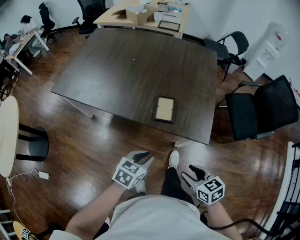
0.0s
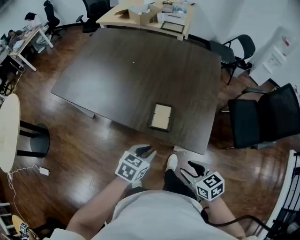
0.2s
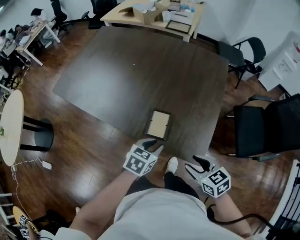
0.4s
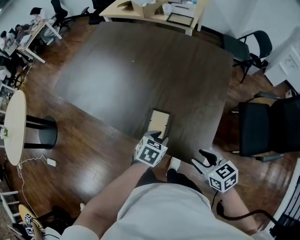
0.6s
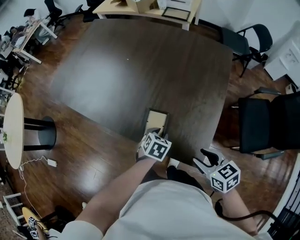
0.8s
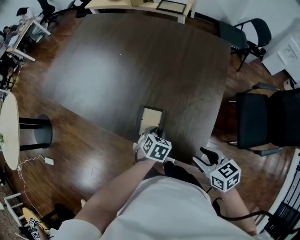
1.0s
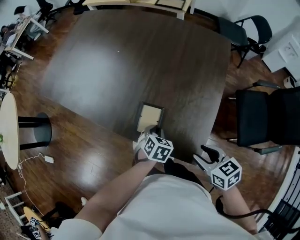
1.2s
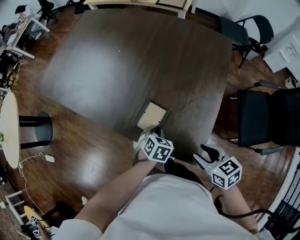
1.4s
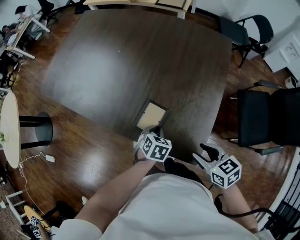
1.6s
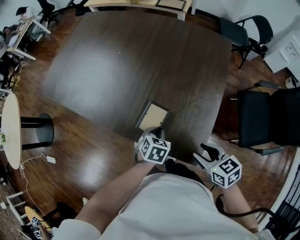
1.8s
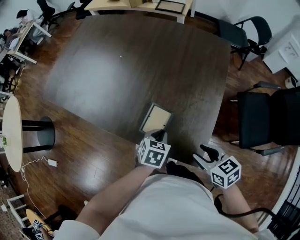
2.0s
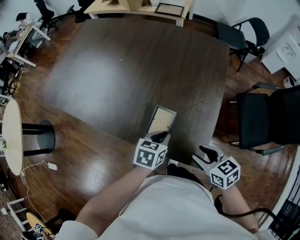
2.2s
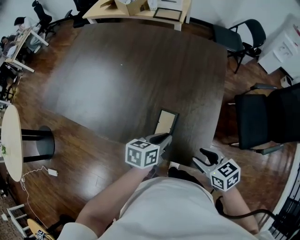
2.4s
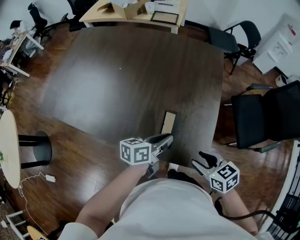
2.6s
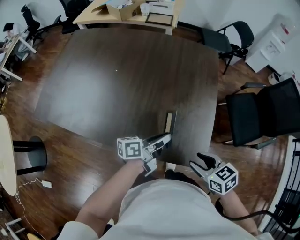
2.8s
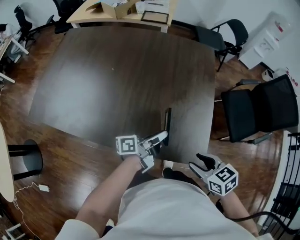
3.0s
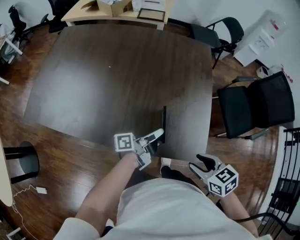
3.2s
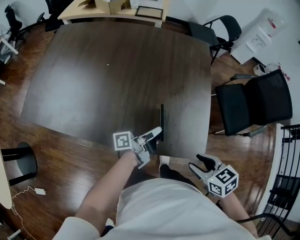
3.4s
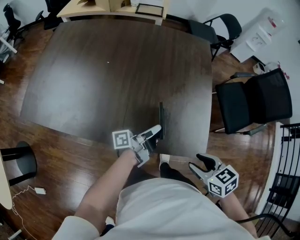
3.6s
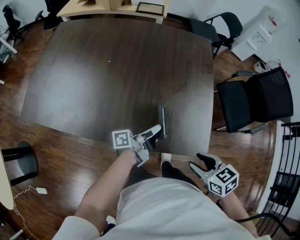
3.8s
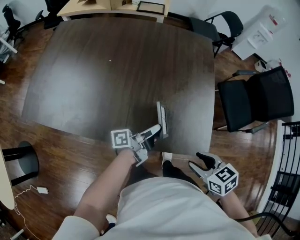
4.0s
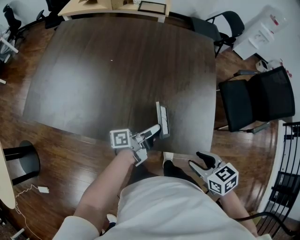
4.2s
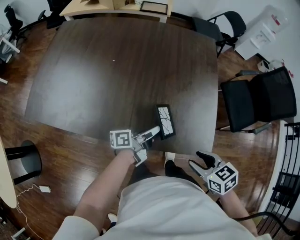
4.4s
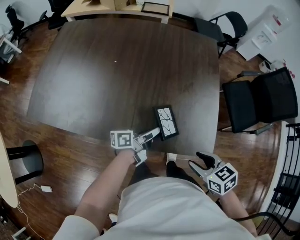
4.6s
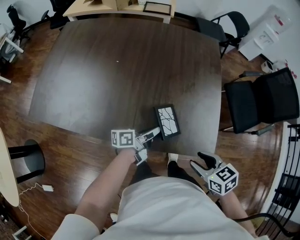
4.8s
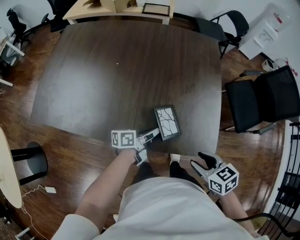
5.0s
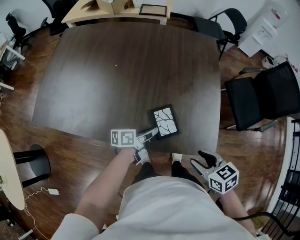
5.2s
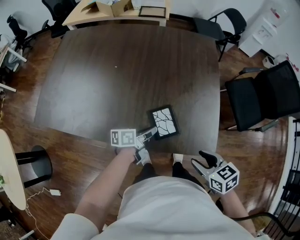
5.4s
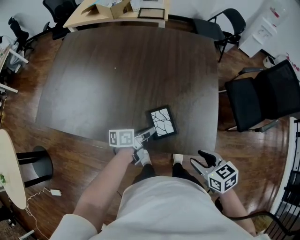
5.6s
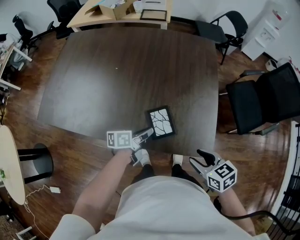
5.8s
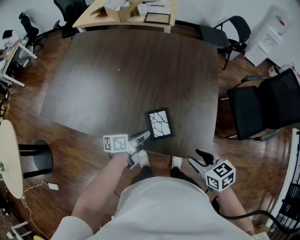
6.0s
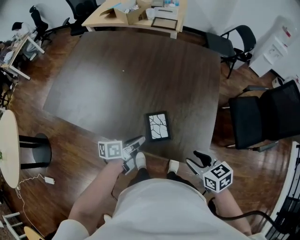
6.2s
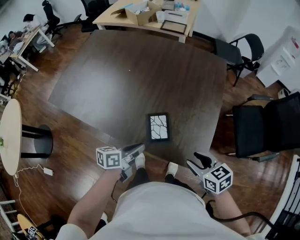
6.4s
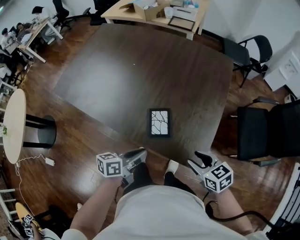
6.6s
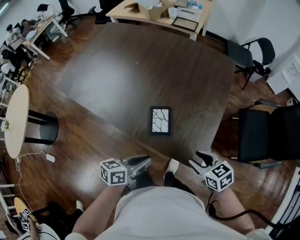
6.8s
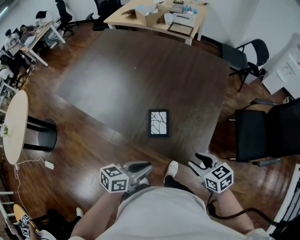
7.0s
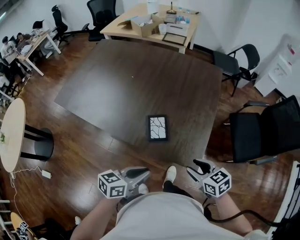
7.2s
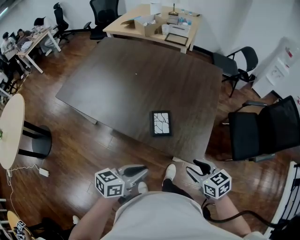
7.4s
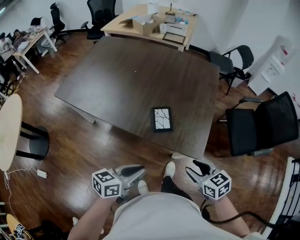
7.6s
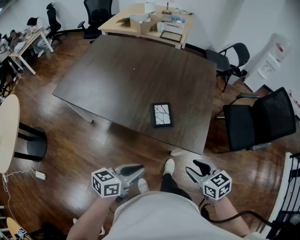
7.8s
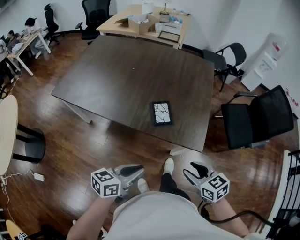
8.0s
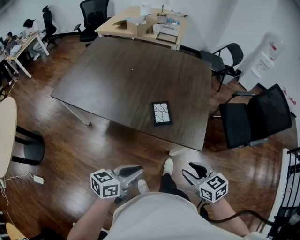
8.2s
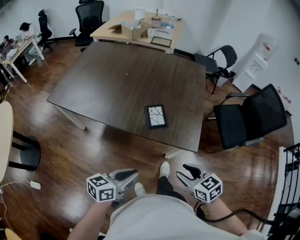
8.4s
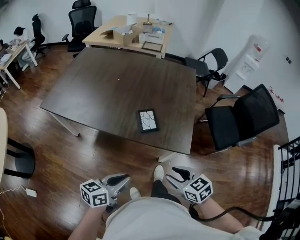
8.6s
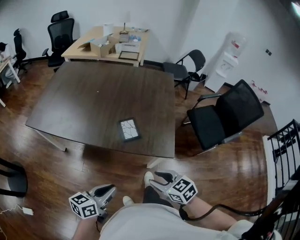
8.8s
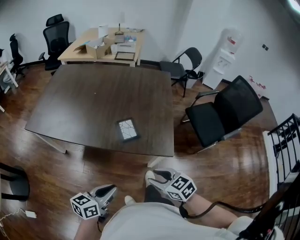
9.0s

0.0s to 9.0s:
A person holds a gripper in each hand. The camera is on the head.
0.0s to 1.6s: The left gripper ends up about 25 cm from where it was, and changes its angle by approximately 30 degrees, while the right gripper ends up about 20 cm from where it was.
1.6s to 3.0s: The right gripper changes place by some 5 cm. Meanwhile the left gripper is displaced upward by about 10 cm, and tilts its fingers roughly 70 degrees upward.
3.0s to 4.4s: The left gripper heads to the left, covering some 5 cm.
4.4s to 6.0s: The left gripper rotates about 30 degrees.
6.0s to 7.6s: The right gripper shifts approximately 10 cm backward. The left gripper goes about 25 cm backward and upward, and rotates roughly 20 degrees.
7.6s to 9.0s: The left gripper shifts by some 5 cm. The right gripper goes roughly 10 cm to the left and backward.

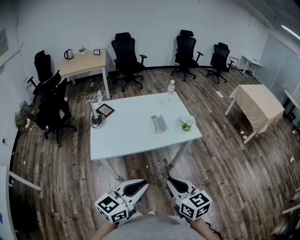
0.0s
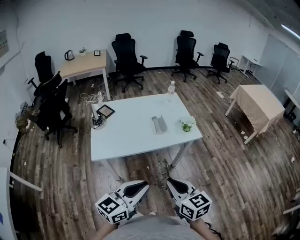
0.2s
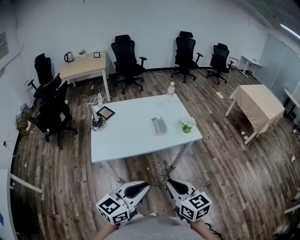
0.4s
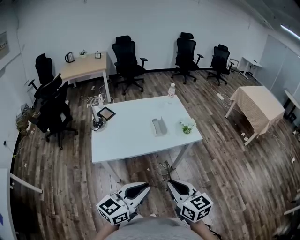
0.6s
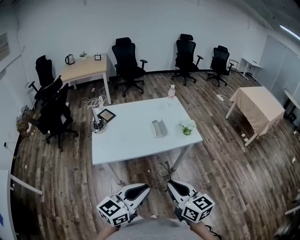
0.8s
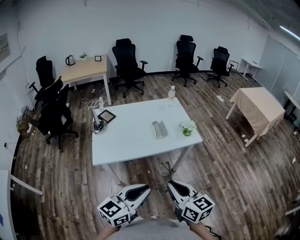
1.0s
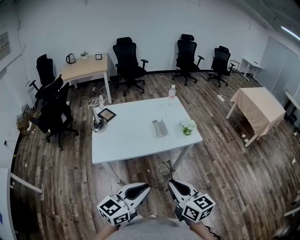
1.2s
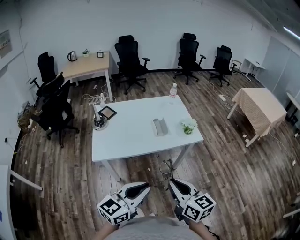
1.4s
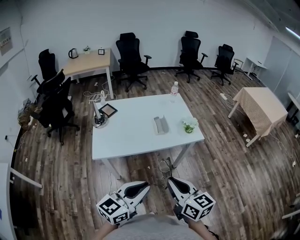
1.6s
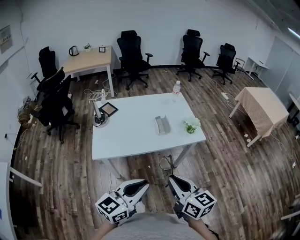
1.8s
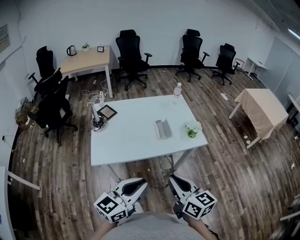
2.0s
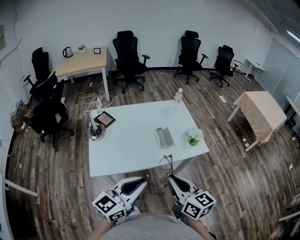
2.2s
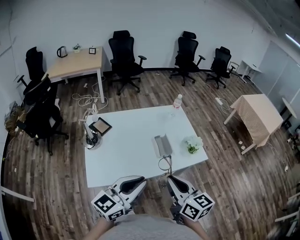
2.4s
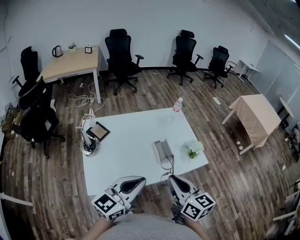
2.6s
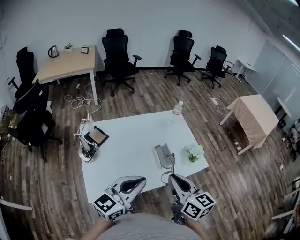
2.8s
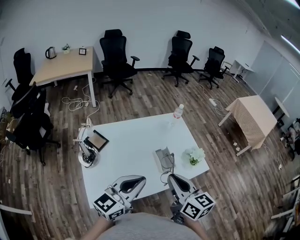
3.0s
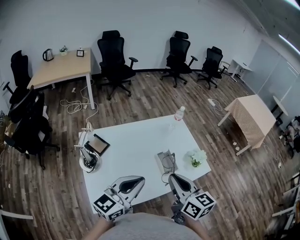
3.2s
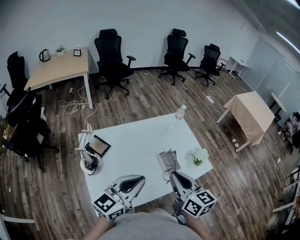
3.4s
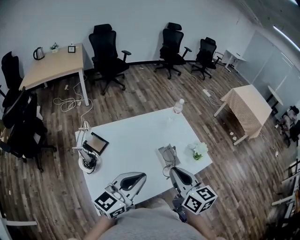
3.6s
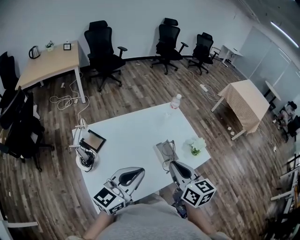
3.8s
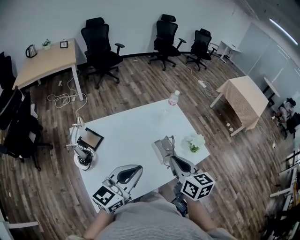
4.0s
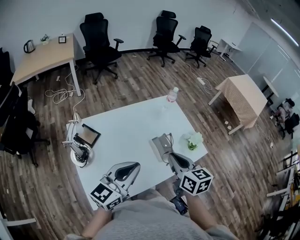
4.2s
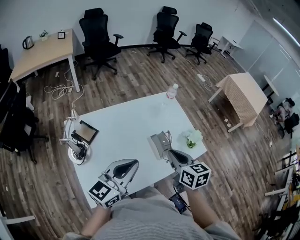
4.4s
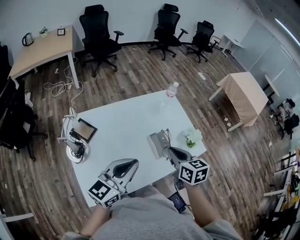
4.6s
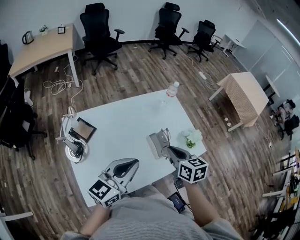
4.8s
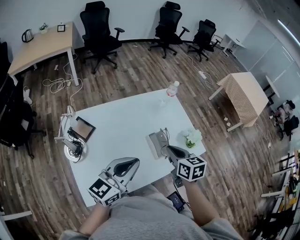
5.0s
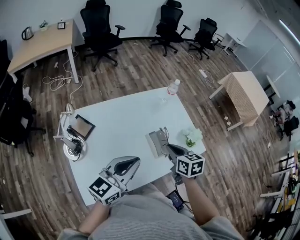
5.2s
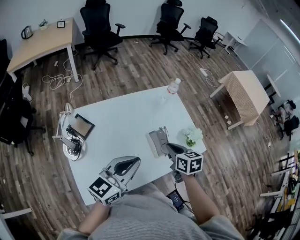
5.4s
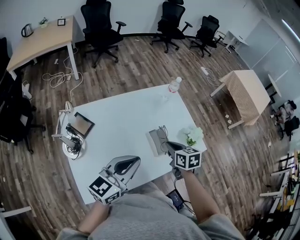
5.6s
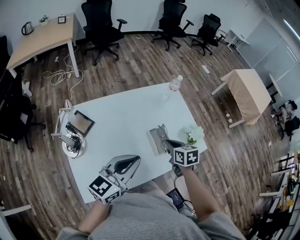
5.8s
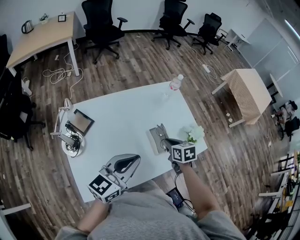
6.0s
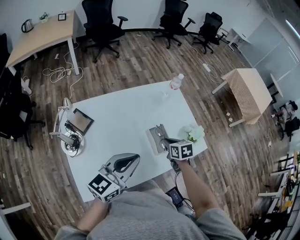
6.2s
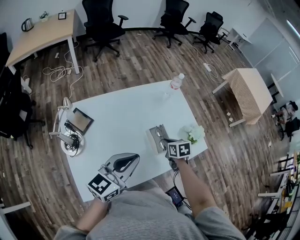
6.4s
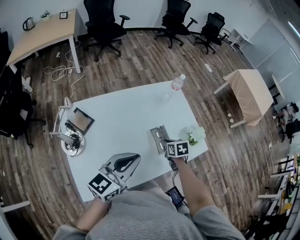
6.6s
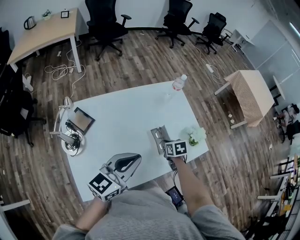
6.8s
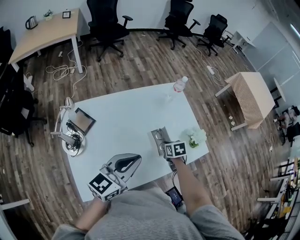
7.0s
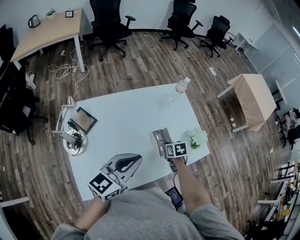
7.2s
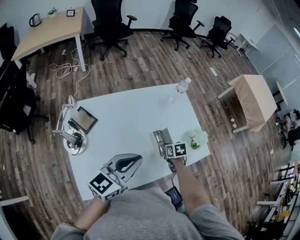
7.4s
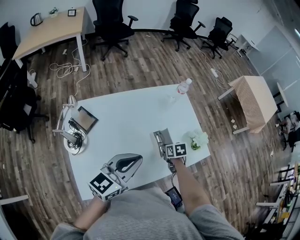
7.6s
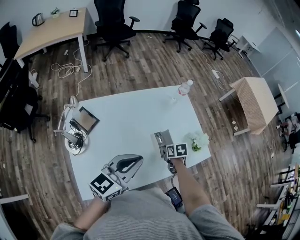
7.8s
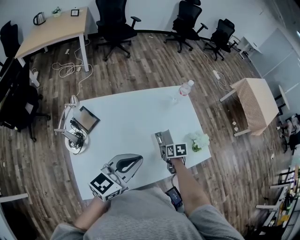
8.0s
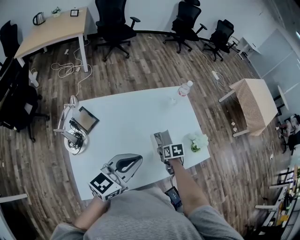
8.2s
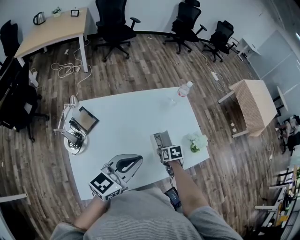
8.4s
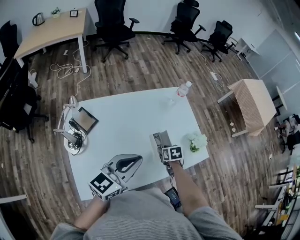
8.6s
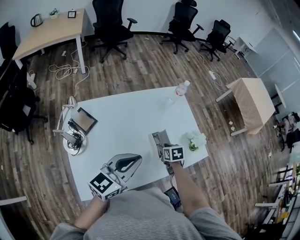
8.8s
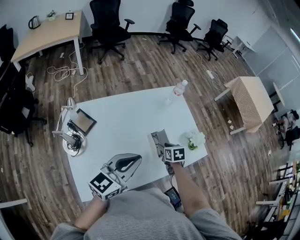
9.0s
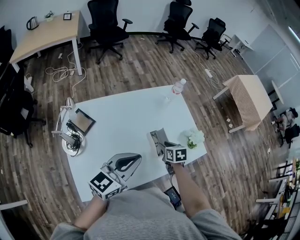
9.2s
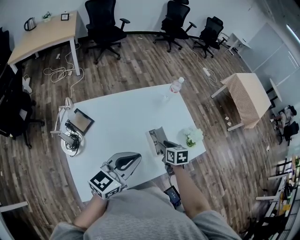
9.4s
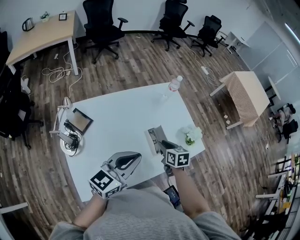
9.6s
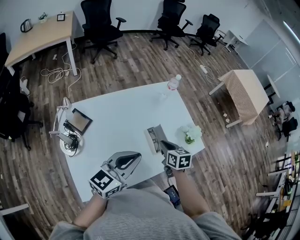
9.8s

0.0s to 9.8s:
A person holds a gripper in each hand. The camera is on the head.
0.0s to 1.4s: The grippers make only small movements.
1.4s to 2.8s: The two grippers go approximately 30 cm forward and to the left.
2.8s to 4.2s: The left gripper goes about 10 cm forward and to the left. Meanwhile the right gripper is displaced forward and downward by roughly 10 cm.
4.2s to 5.6s: The right gripper goes roughly 15 cm downward and forward. Meanwhile the left gripper shifts by roughly 5 cm.
5.6s to 7.0s: The right gripper heads downward, covering approximately 15 cm, and swivels some 20 degrees.
7.0s to 8.4s: The right gripper opens up.
8.4s to 9.8s: The right gripper shifts approximately 10 cm upward, swivels about 30 degrees, and closes up.

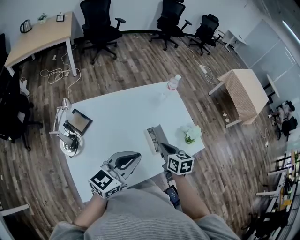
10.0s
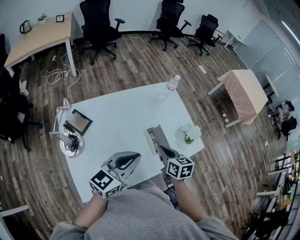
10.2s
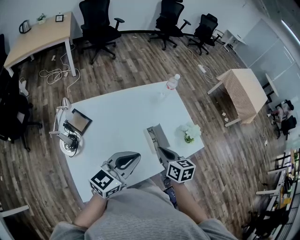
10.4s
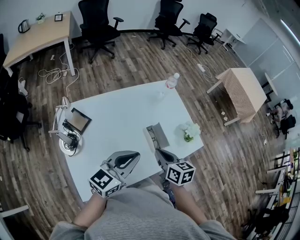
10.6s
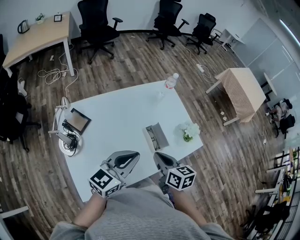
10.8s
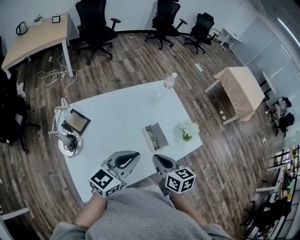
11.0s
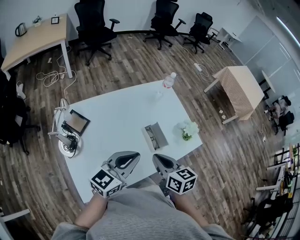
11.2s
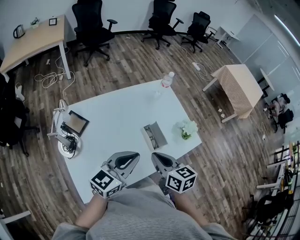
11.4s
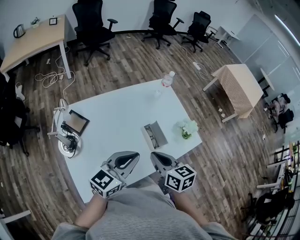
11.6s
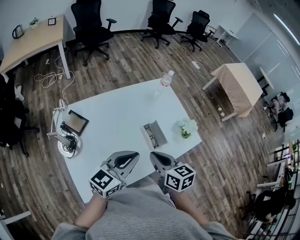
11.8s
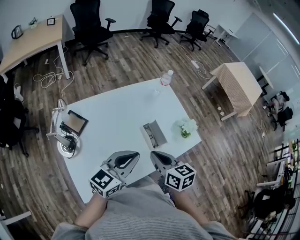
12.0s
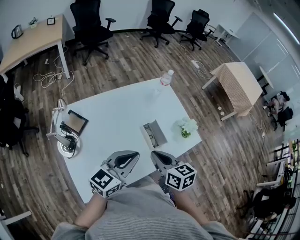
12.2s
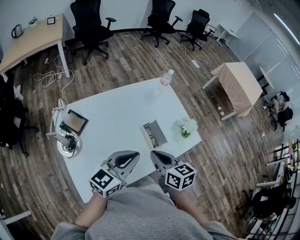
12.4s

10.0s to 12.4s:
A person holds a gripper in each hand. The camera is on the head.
10.0s to 11.2s: The right gripper travels backward and upward by roughly 10 cm.
11.2s to 12.4s: Neither gripper changes place.

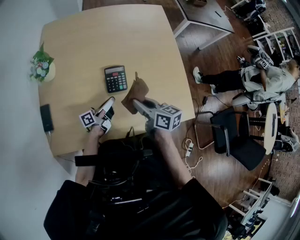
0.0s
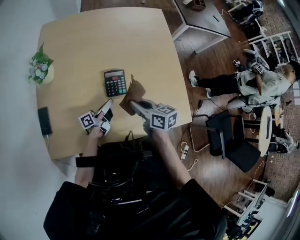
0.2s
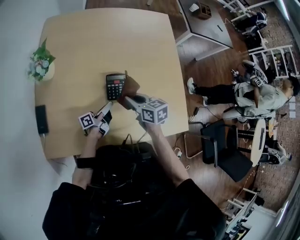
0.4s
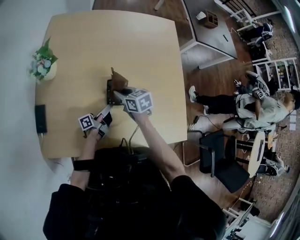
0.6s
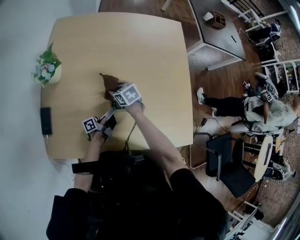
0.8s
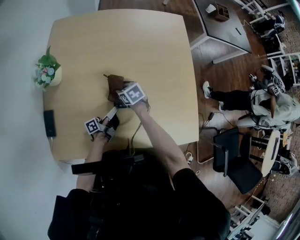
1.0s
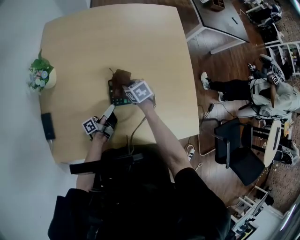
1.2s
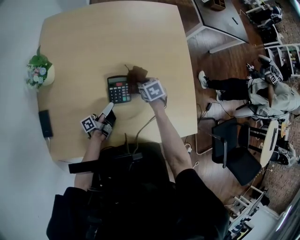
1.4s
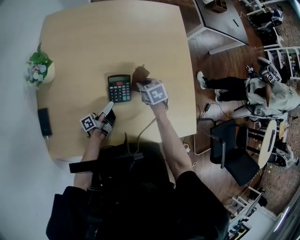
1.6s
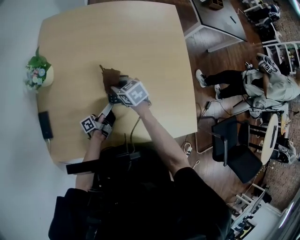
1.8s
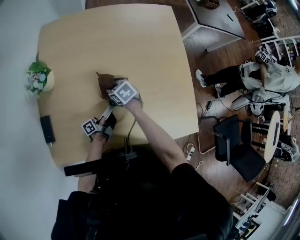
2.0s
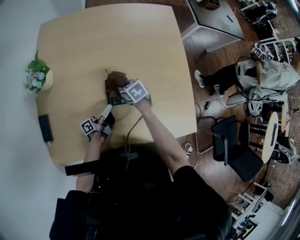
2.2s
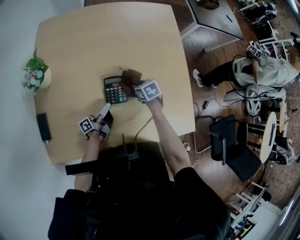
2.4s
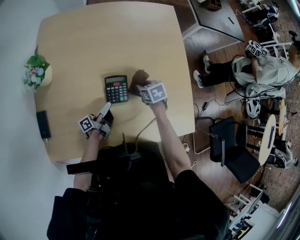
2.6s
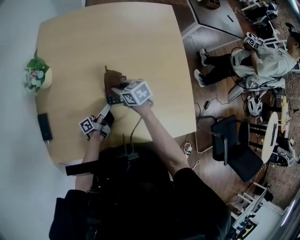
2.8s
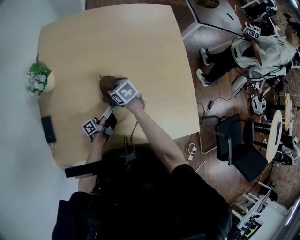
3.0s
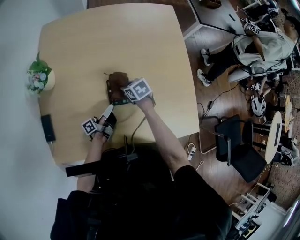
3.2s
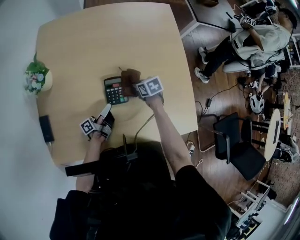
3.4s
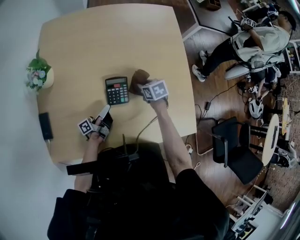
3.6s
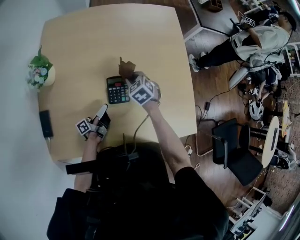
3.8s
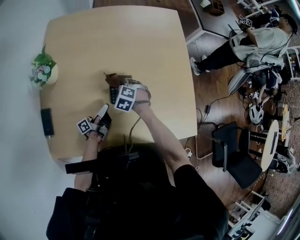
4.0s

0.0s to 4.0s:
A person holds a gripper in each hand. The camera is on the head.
0.0s to 1.4s: The right gripper shifts roughly 20 cm downward, and tilts its fingers some 40 degrees downward.
2.6s to 4.0s: The right gripper moves up and down over roughly 5 cm, changing direction 3 times, and twists about 50 degrees counterclockwise, seen from behind.
